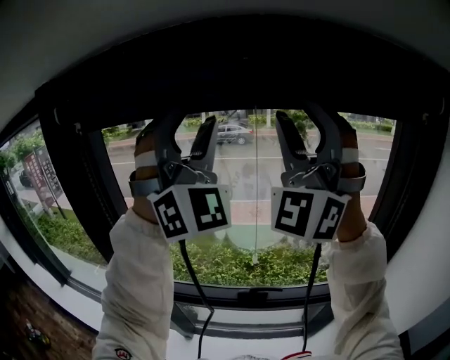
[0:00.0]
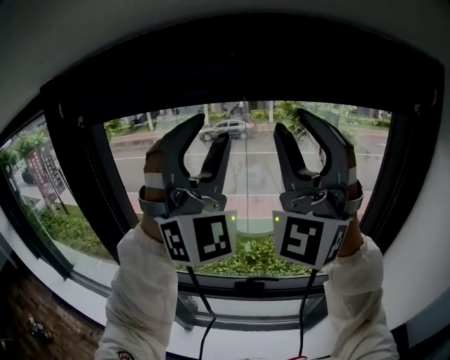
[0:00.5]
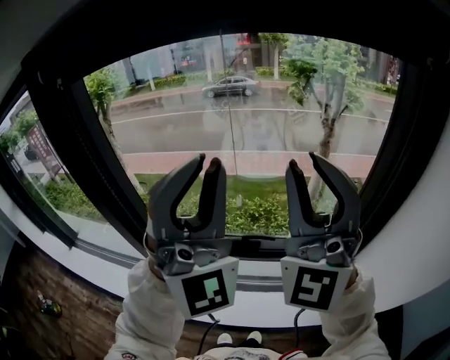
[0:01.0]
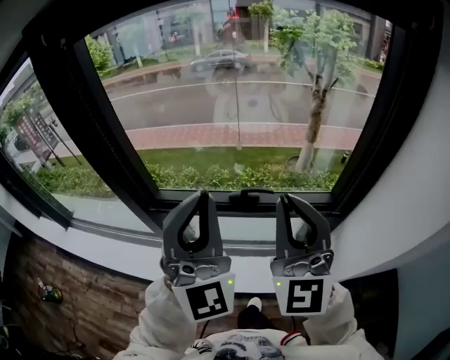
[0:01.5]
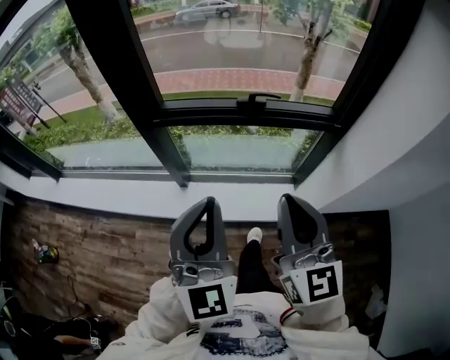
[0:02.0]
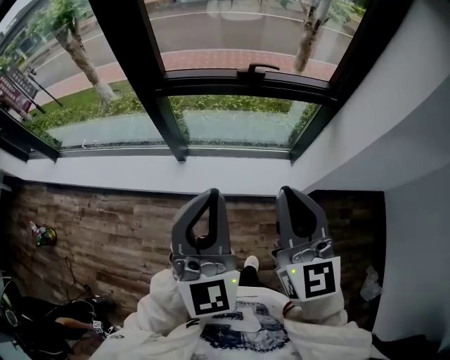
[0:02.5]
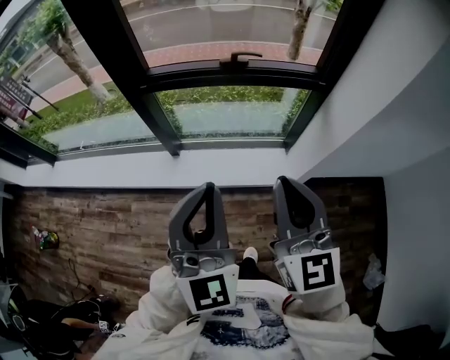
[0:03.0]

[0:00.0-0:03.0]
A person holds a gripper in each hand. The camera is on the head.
0:00.0 to 0:01.5: Both grippers travel together downward and backward, approximately 35 cm. The left gripper turns by about 40 degrees, and closes; the right gripper rotates around the line of its fingers by some 50 degrees, clockwise from behind, and closes its fingers.
0:01.5 to 0:03.0: The two grippers go approximately 35 cm backward and downward. The right gripper turns by approximately 20 degrees, while the left gripper swivels some 20 degrees.

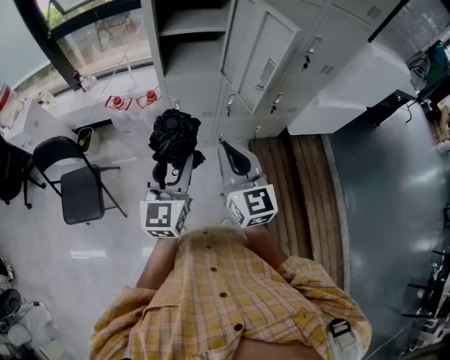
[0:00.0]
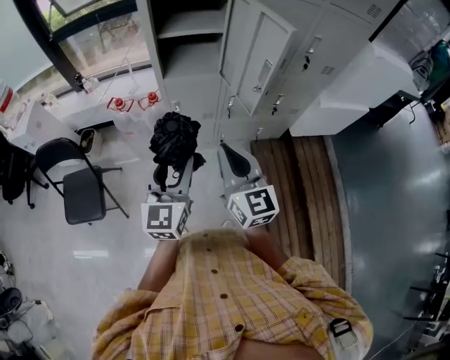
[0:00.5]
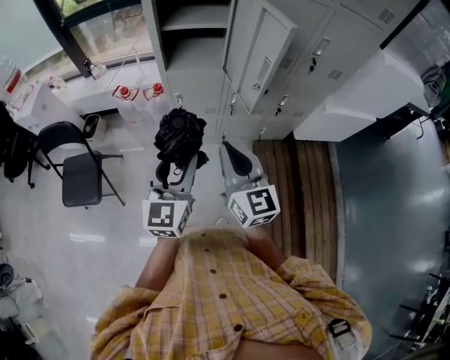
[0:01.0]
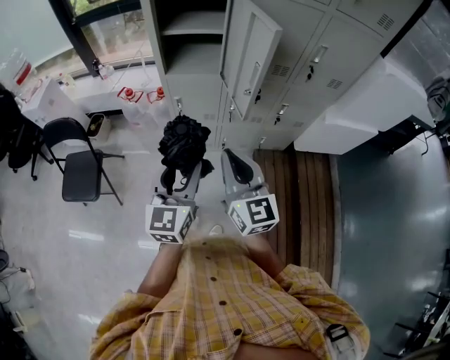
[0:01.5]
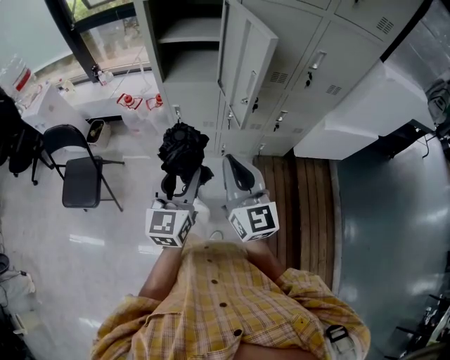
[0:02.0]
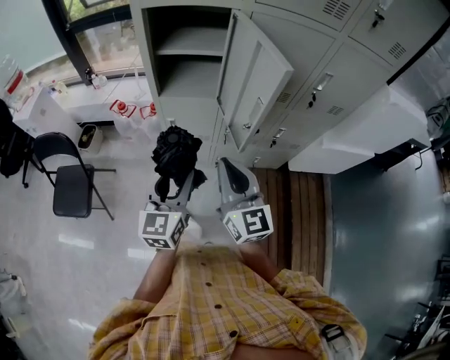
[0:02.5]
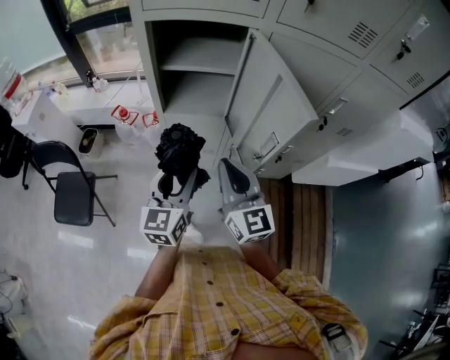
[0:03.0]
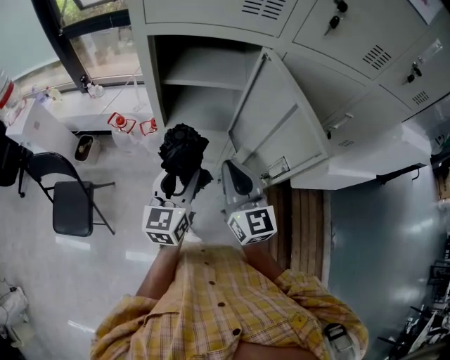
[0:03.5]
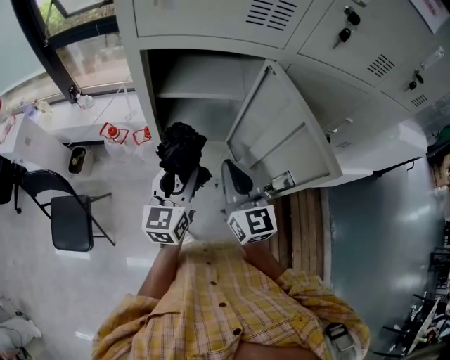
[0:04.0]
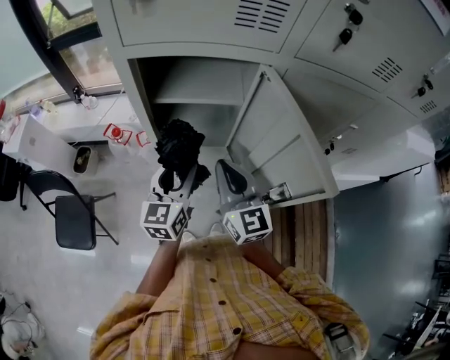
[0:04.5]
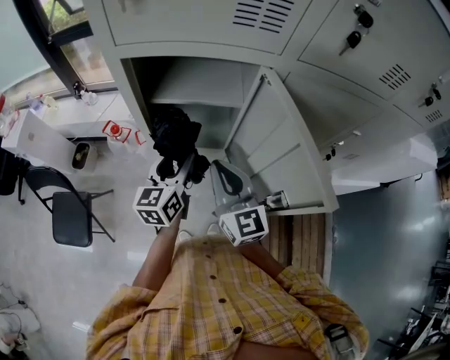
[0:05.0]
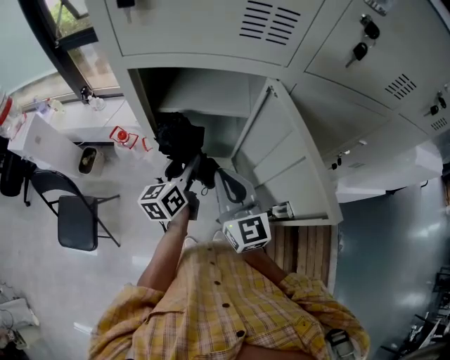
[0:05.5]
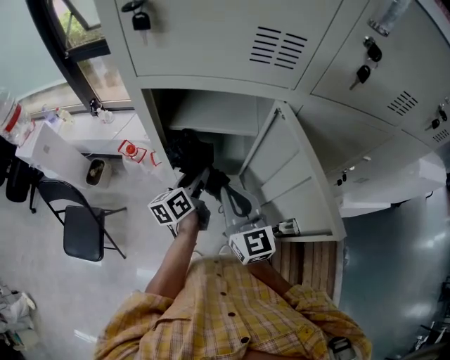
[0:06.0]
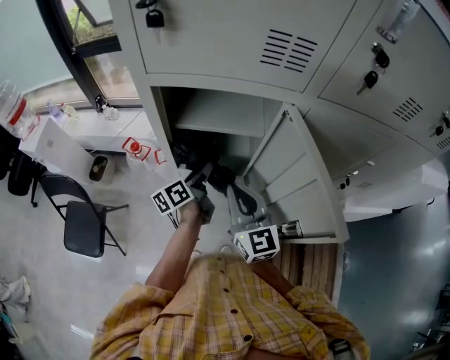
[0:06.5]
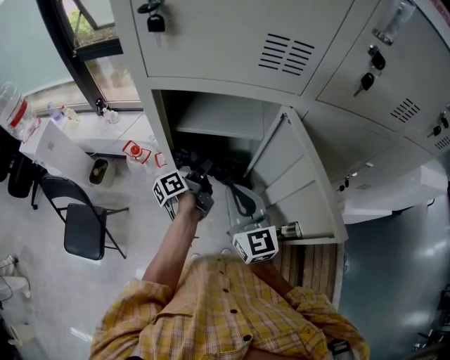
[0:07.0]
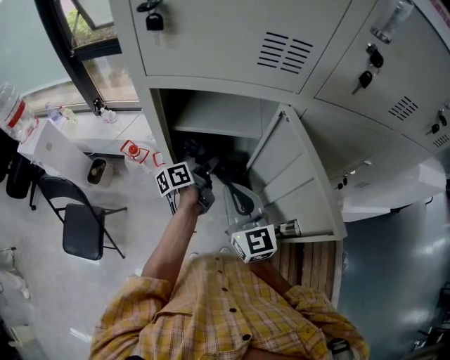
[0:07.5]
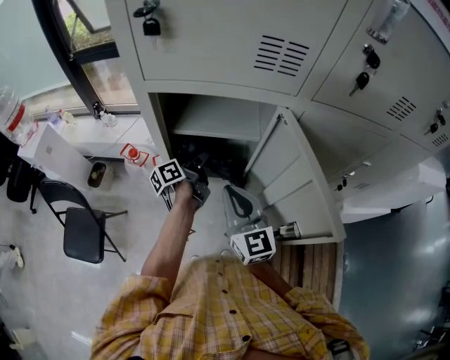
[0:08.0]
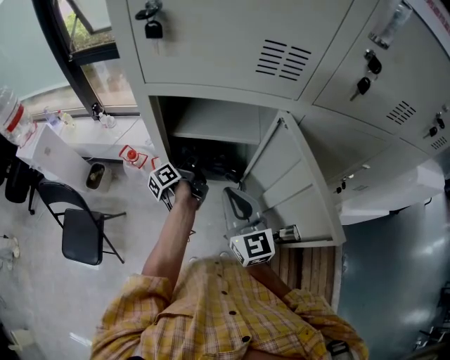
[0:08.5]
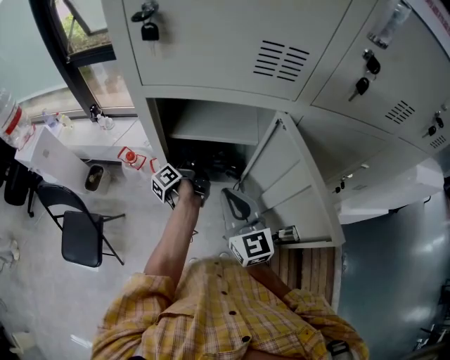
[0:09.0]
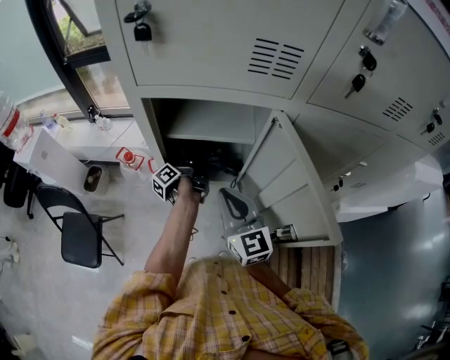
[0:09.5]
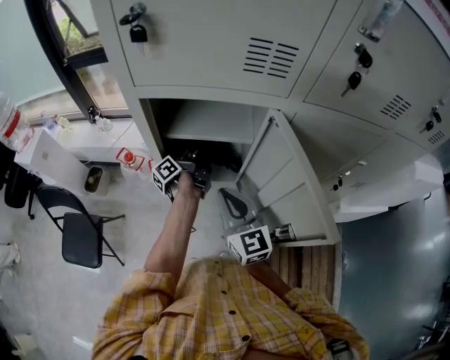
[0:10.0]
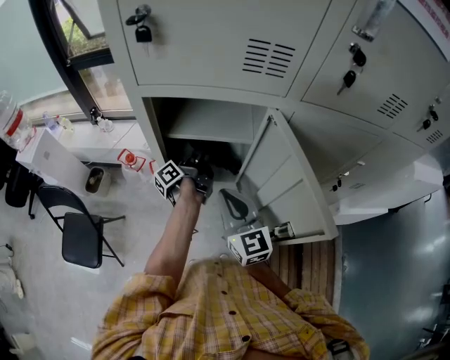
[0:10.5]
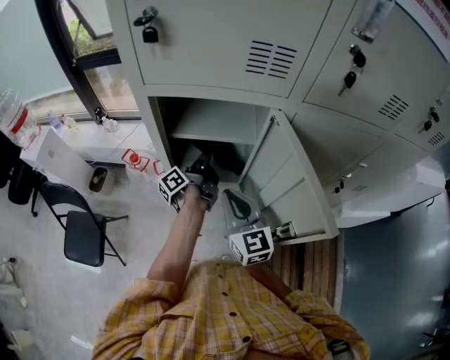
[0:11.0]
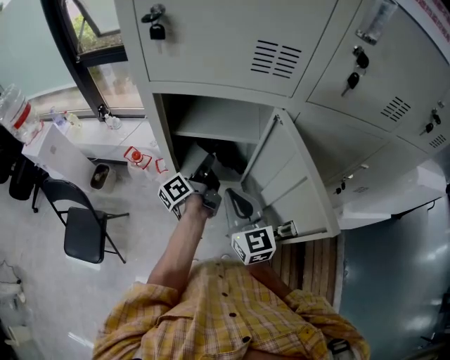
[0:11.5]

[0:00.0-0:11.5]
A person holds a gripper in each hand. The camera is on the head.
0:00.0 to 0:02.0: The grippers both shift to the right by about 10 cm.
0:02.0 to 0:04.0: Both grippers travel together forward, about 30 cm.
0:04.0 to 0:06.0: The right gripper changes place by roughly 5 cm. Meanwhile the left gripper travels forward and downward by some 15 cm, and swivels some 40 degrees.
0:06.0 to 0:07.5: The left gripper changes place by about 5 cm, and changes its angle by roughly 20 degrees.
0:07.5 to 0:09.5: The left gripper goes approximately 10 cm forward and to the left, and rotates roughly 30 degrees.
0:09.5 to 0:11.5: The left gripper moves upward and backward, about 10 cm, swivels some 20 degrees, and closes.

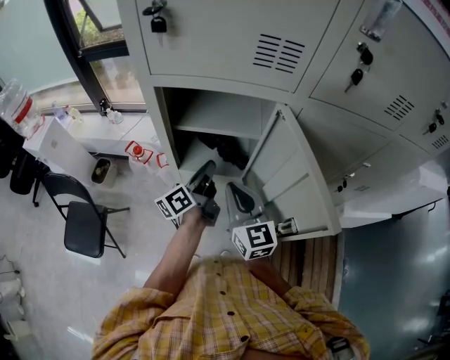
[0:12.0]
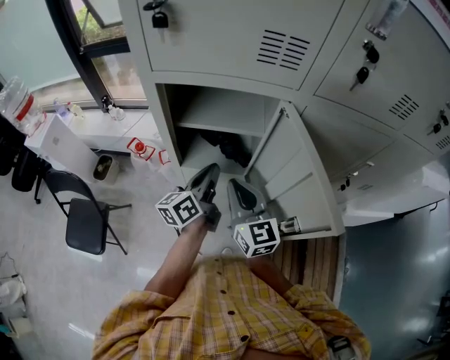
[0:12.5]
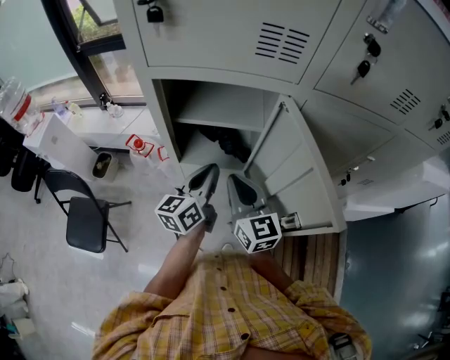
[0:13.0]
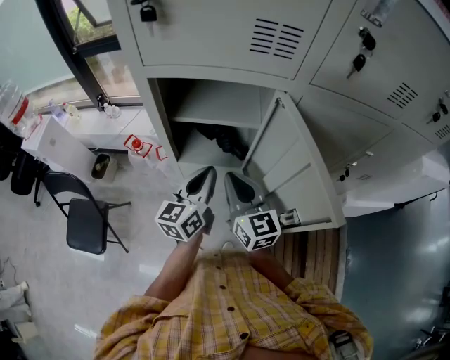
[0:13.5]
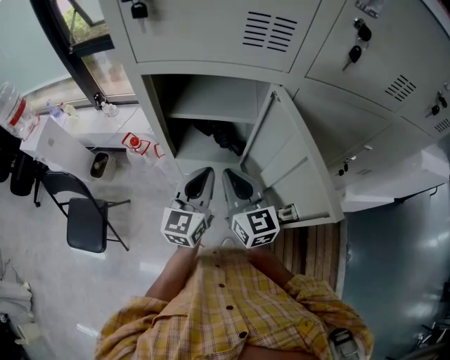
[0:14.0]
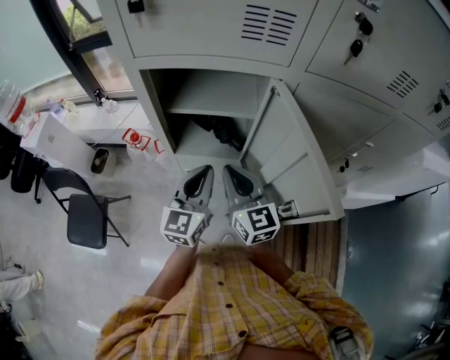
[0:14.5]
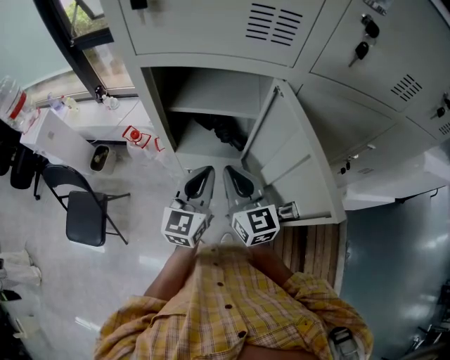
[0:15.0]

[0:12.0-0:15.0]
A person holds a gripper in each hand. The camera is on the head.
0:12.0 to 0:13.5: The left gripper goes approximately 5 cm backward, and turns by roughly 40 degrees.
0:13.5 to 0:15.0: The left gripper rotates approximately 20 degrees.

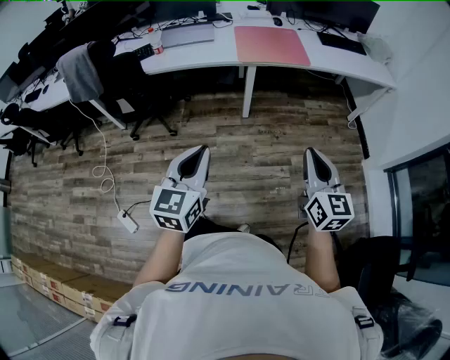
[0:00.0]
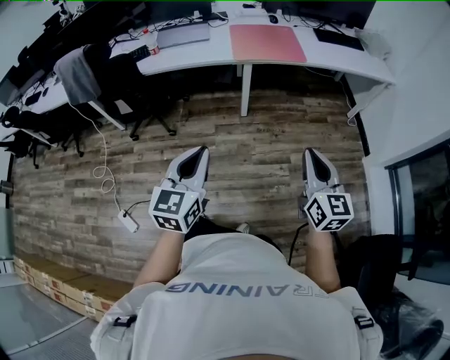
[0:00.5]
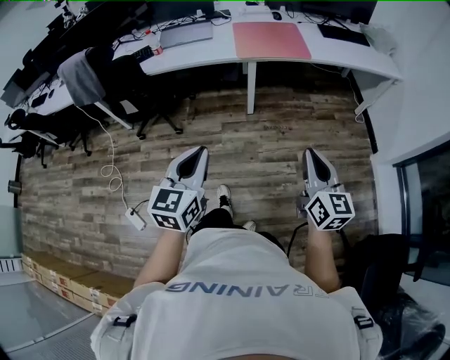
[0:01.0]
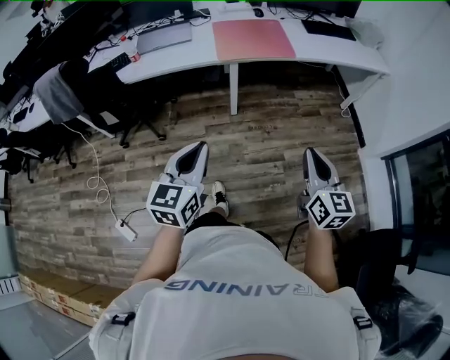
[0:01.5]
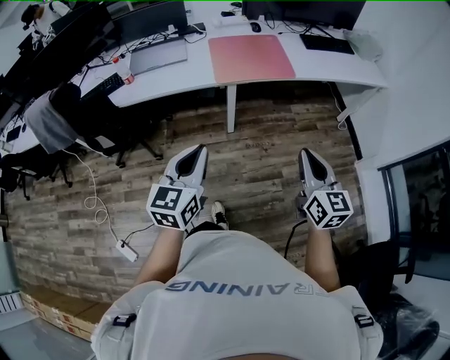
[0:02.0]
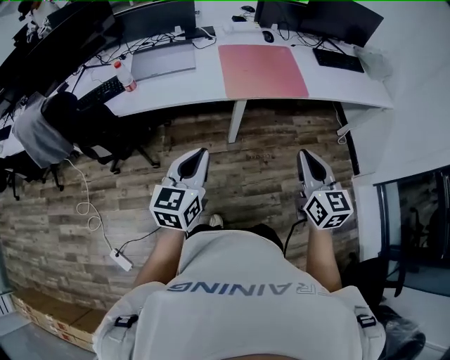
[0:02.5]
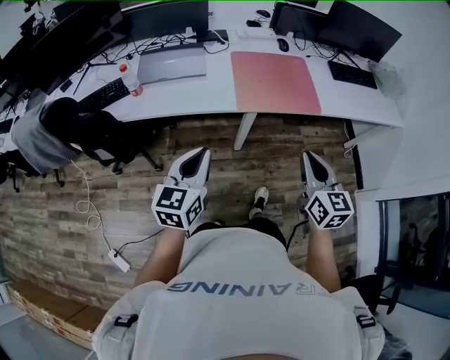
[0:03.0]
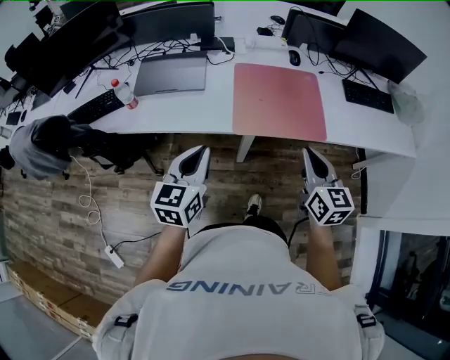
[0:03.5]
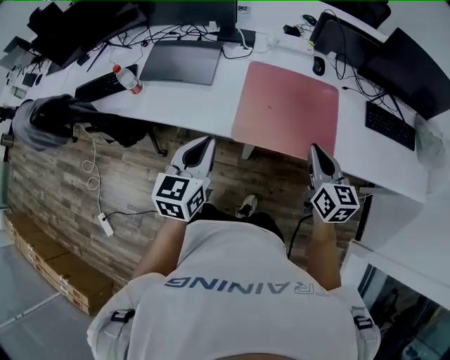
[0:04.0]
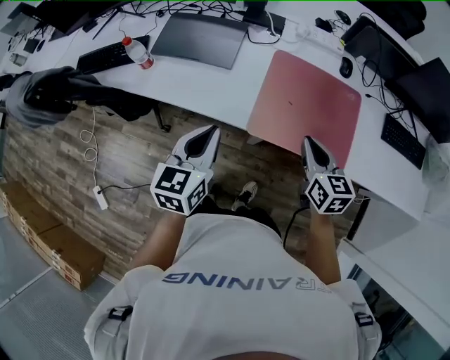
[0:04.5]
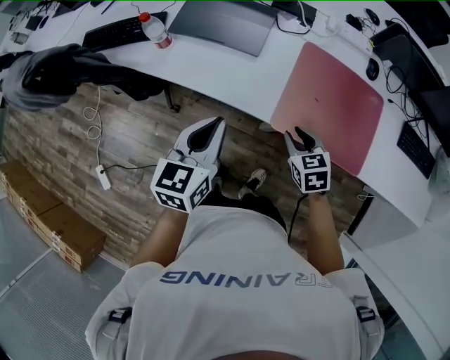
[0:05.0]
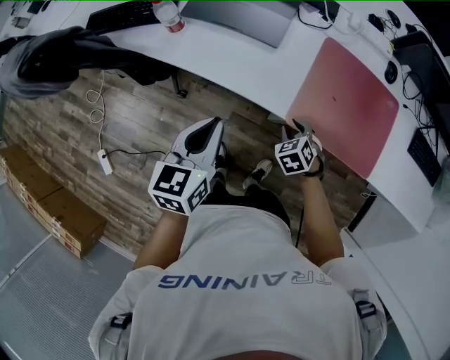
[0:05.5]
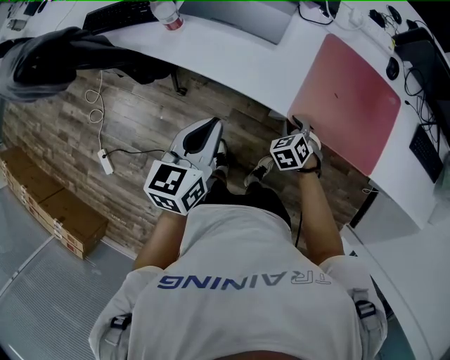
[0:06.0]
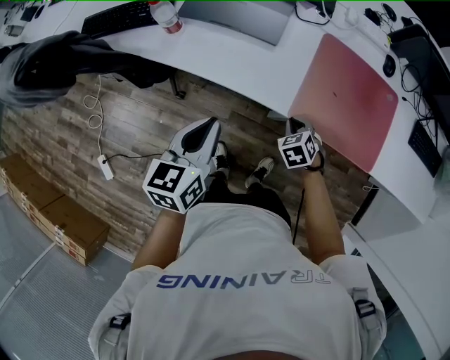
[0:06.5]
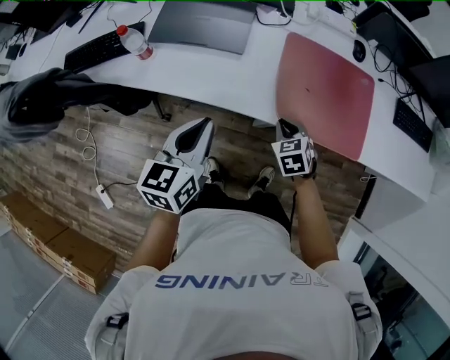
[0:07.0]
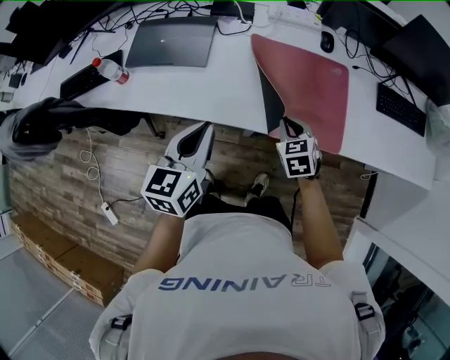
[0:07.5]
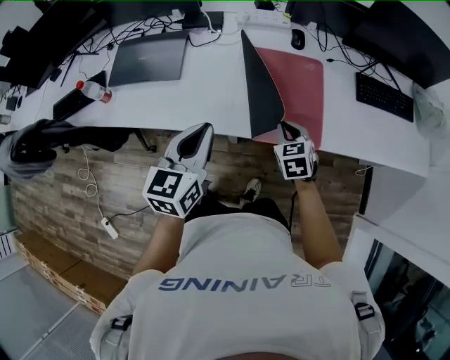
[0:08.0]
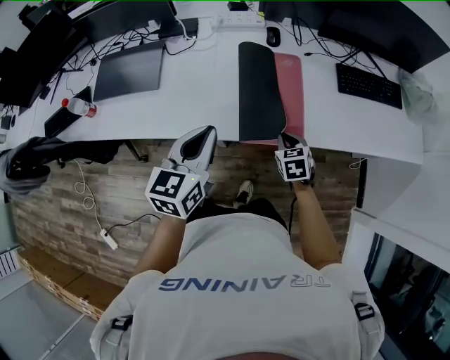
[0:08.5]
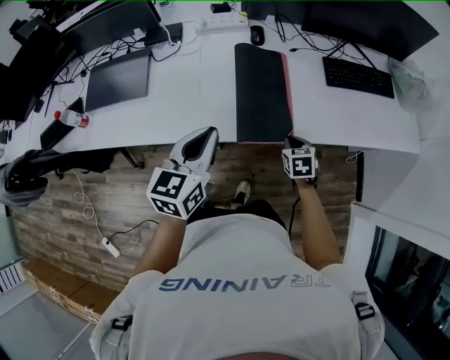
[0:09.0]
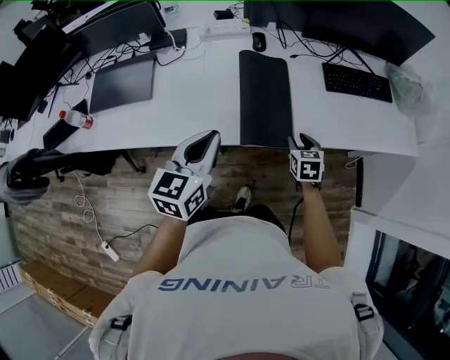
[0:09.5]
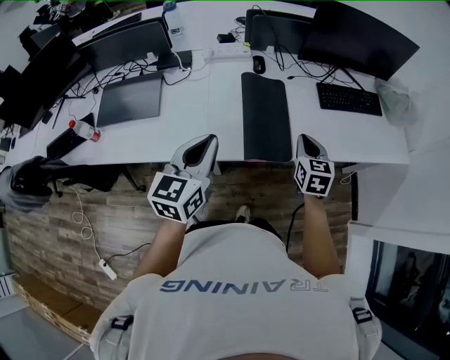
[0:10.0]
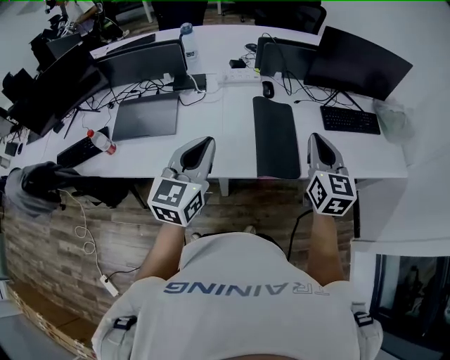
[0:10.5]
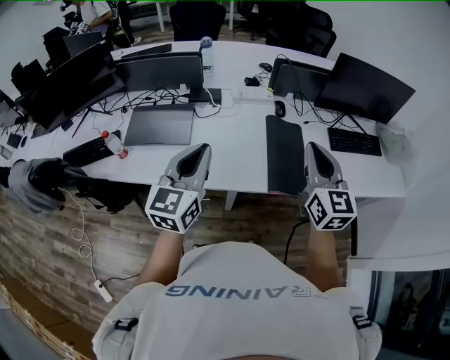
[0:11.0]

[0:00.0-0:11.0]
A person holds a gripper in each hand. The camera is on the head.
0:00.0 to 0:02.0: The two grippers go approximately 15 cm forward.
0:02.0 to 0:03.5: The two grippers go approximately 30 cm forward.
0:03.5 to 0:05.5: The left gripper is displaced to the left, downward and forward by roughly 15 cm, and changes its angle by roughly 20 degrees; the right gripper is displaced downward, forward and to the left by some 35 cm, angles its fingers downward, by some 50 degrees, and opens its fingers.
0:05.5 to 0:07.5: The right gripper goes about 20 cm to the right and upward, rotates some 30 degrees, and closes; the left gripper moves to the right, about 15 cm.
0:07.5 to 0:09.0: Both grippers travel together to the right, about 25 cm. The right gripper turns by roughly 20 degrees.
0:09.0 to 0:11.0: The right gripper is displaced upward and to the left by approximately 40 cm, tilts its fingers approximately 50 degrees upward, and opens, then closes once more. The left gripper travels to the left and upward by some 20 cm, and swivels some 20 degrees.
